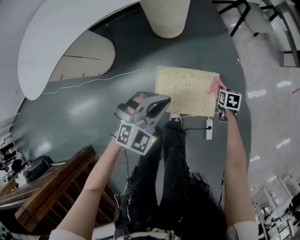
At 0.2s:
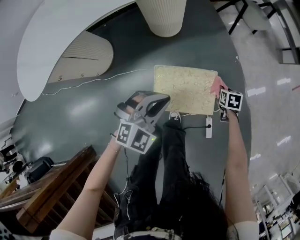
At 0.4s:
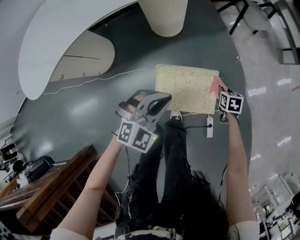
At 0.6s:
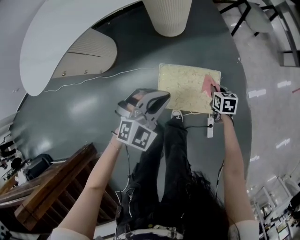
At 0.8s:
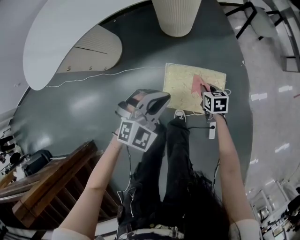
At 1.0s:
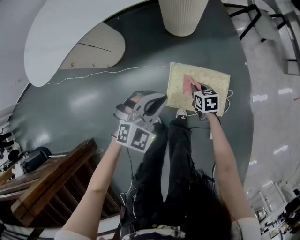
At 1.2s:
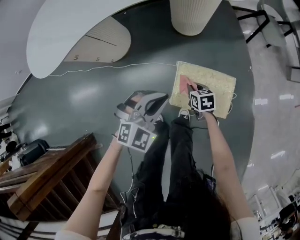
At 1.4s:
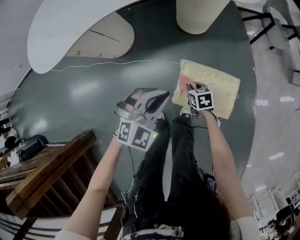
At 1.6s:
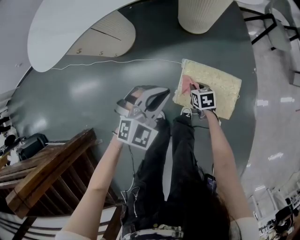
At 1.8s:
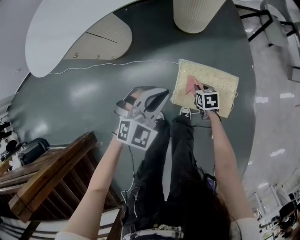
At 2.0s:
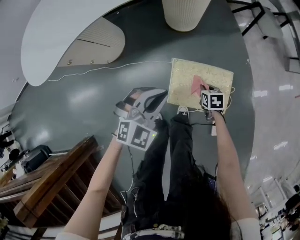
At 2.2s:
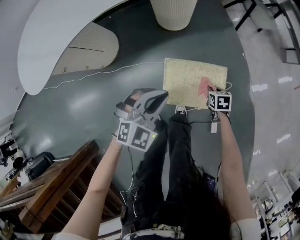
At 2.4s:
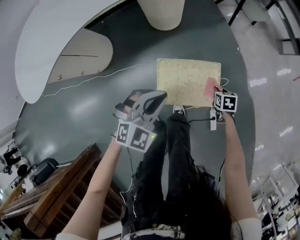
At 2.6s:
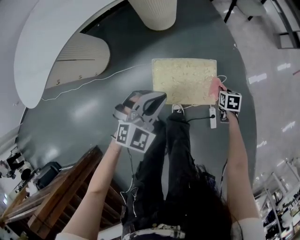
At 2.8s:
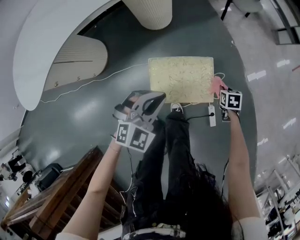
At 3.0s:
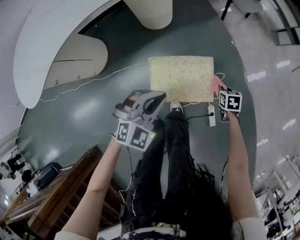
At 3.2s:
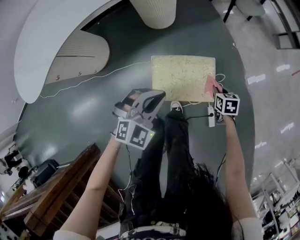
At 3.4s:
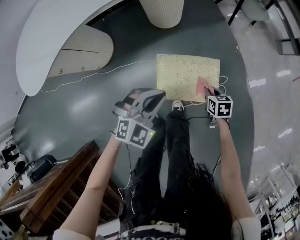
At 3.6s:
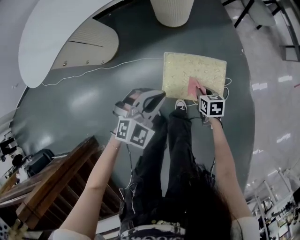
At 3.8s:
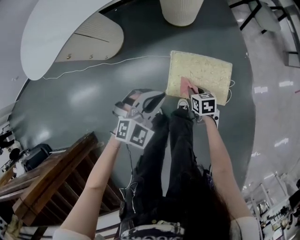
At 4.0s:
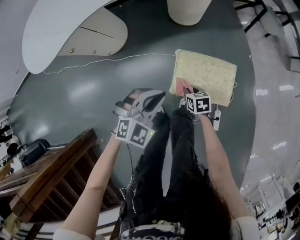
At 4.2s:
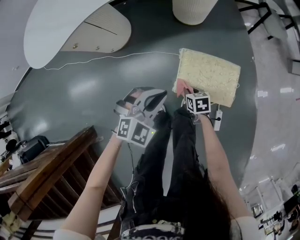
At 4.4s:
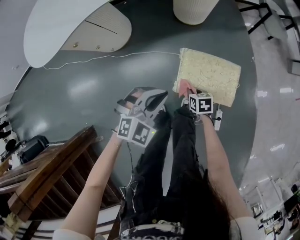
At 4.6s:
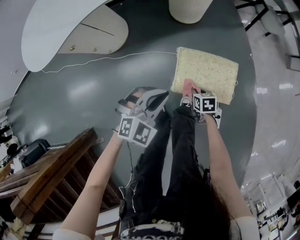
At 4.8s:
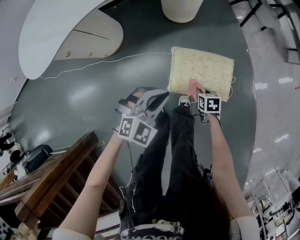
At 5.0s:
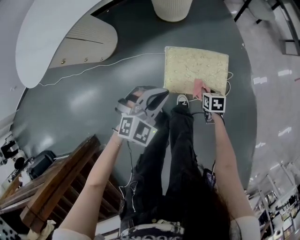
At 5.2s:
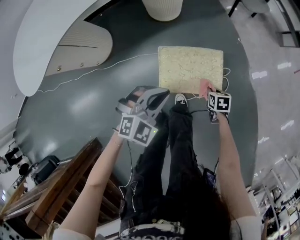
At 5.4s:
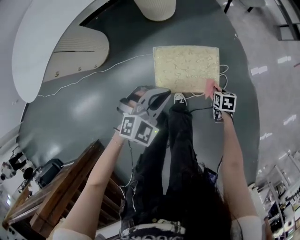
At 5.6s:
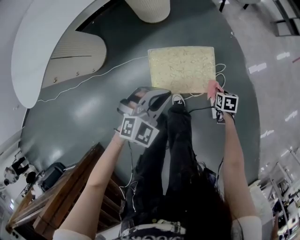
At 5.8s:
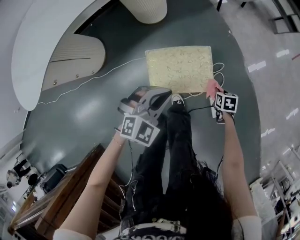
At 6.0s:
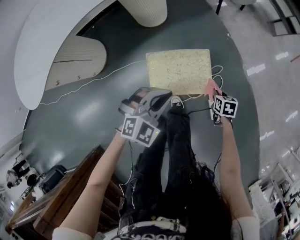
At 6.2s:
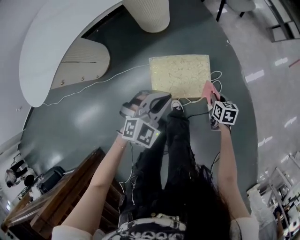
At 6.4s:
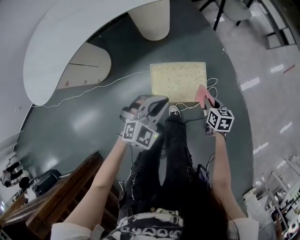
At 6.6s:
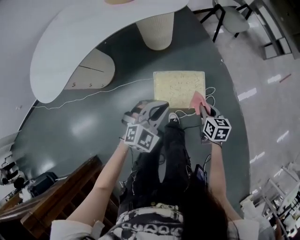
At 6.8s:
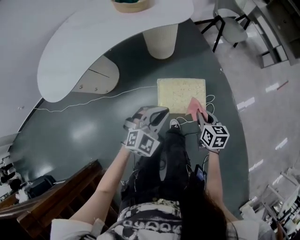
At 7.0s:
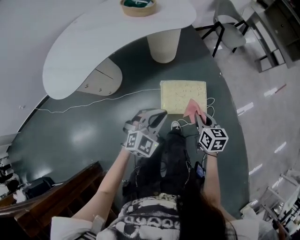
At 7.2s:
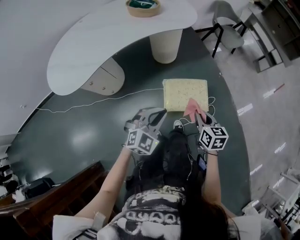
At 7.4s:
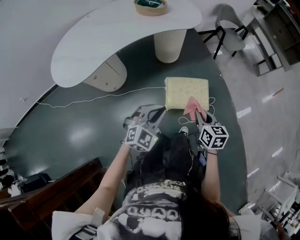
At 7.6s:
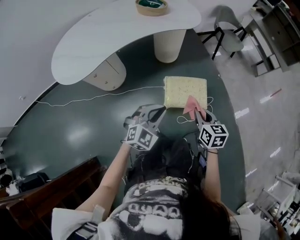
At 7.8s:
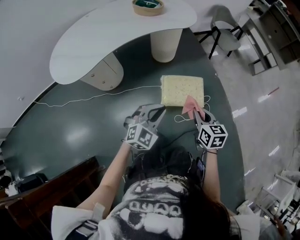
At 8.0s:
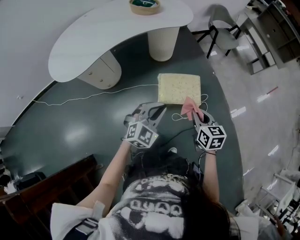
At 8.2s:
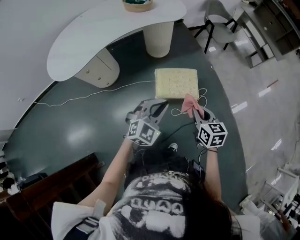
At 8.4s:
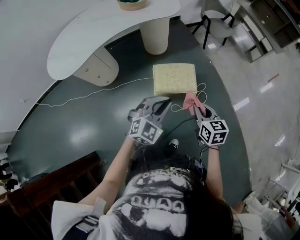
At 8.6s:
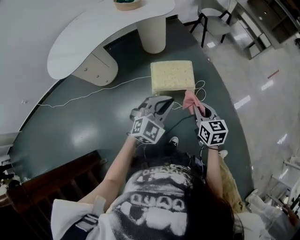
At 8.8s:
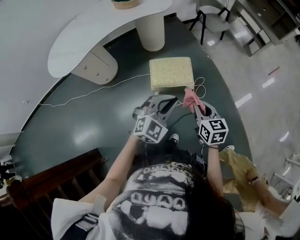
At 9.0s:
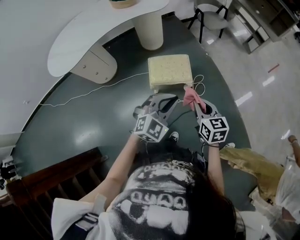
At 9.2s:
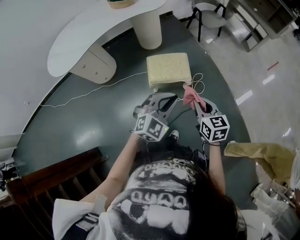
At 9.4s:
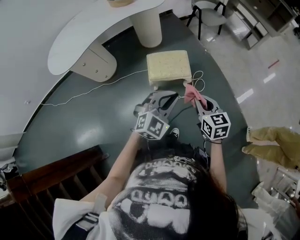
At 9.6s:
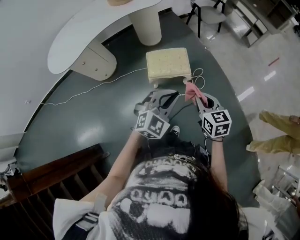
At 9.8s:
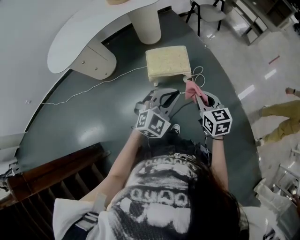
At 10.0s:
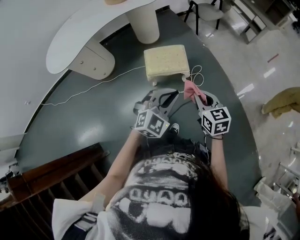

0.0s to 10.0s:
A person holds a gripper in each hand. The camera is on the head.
0.0s to 1.4s: The left gripper shifts by about 10 cm. Meanwhile the right gripper changes place by approximately 30 cm, and changes its angle by approximately 30 degrees.
1.4s to 2.8s: The left gripper changes place by roughly 15 cm. Meanwhile the right gripper moves some 35 cm, and rotates some 30 degrees.
2.8s to 4.2s: The left gripper moves roughly 15 cm. Meanwhile the right gripper ends up roughly 35 cm from where it was, and changes its angle by roughly 30 degrees.
4.2s to 5.8s: The right gripper moves some 35 cm, and changes its angle by some 30 degrees. The left gripper ends up roughly 15 cm from where it was.
5.8s to 7.2s: The right gripper goes about 40 cm upward and to the left, and tilts its fingers roughly 40 degrees upward; the left gripper goes approximately 25 cm upward, backward and to the left.
7.2s to 8.6s: The left gripper is displaced to the right, backward and upward by some 20 cm, while the right gripper goes some 20 cm backward, to the right and upward.
8.6s to 10.0s: Both grippers move to the right and backward, about 10 cm.

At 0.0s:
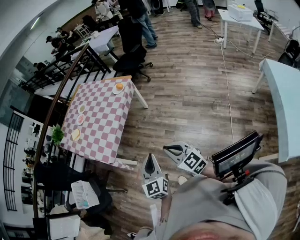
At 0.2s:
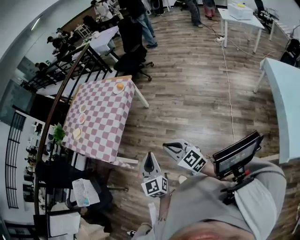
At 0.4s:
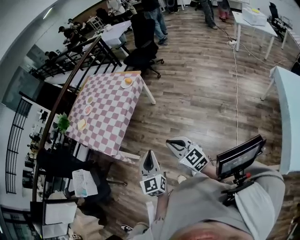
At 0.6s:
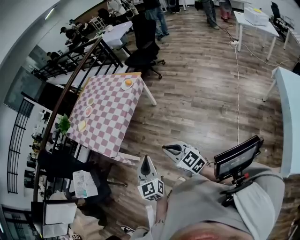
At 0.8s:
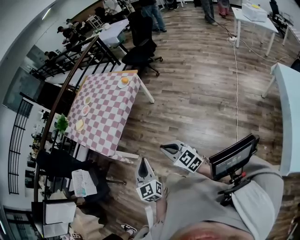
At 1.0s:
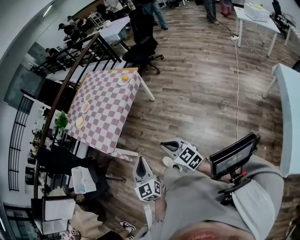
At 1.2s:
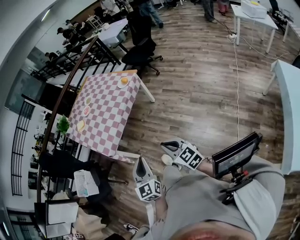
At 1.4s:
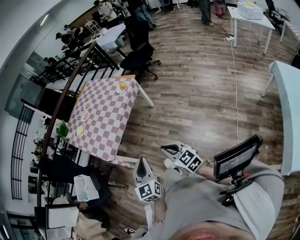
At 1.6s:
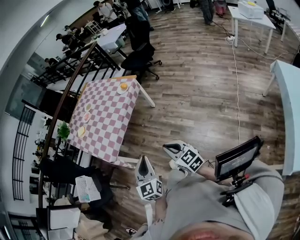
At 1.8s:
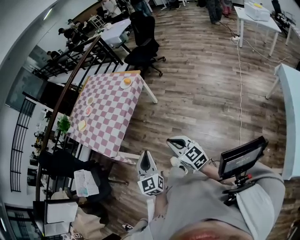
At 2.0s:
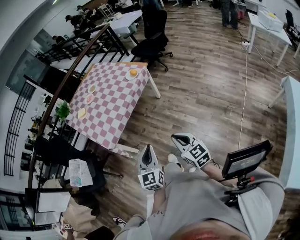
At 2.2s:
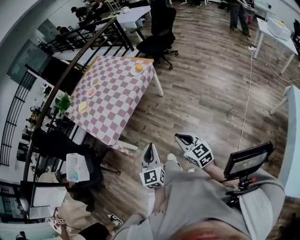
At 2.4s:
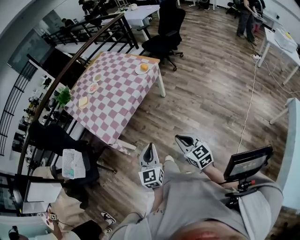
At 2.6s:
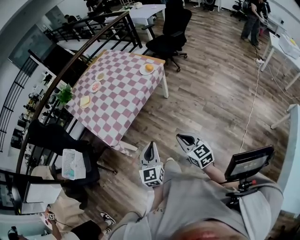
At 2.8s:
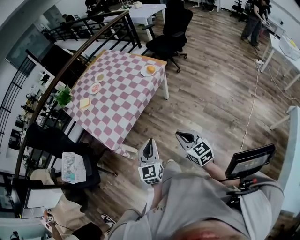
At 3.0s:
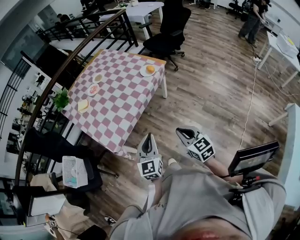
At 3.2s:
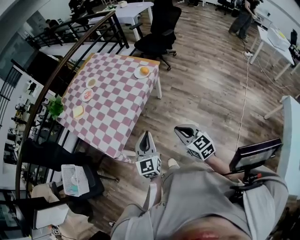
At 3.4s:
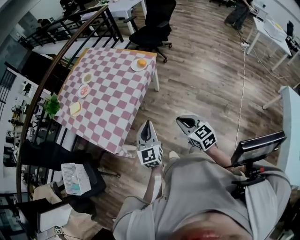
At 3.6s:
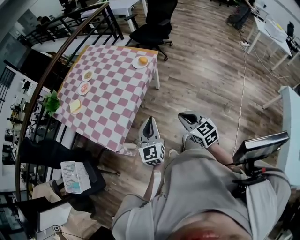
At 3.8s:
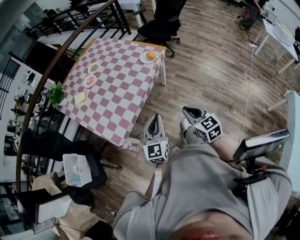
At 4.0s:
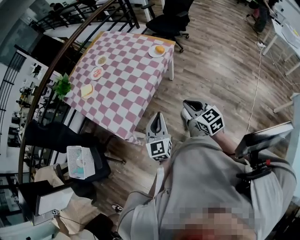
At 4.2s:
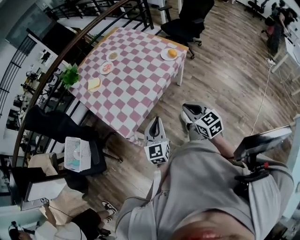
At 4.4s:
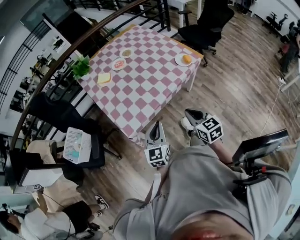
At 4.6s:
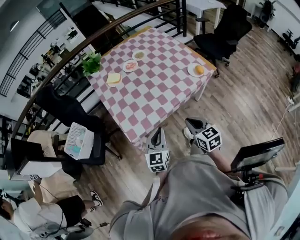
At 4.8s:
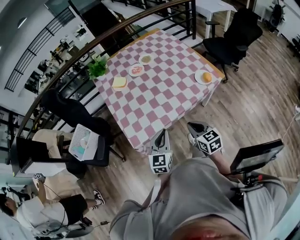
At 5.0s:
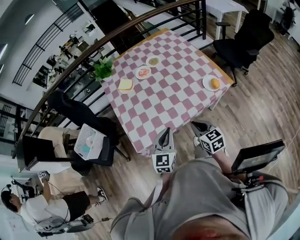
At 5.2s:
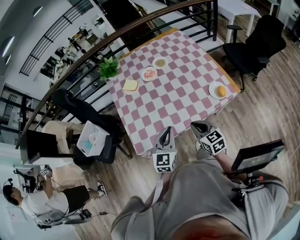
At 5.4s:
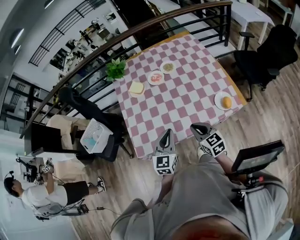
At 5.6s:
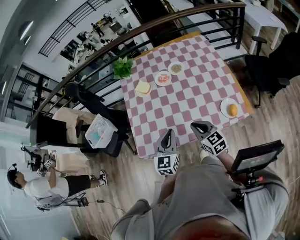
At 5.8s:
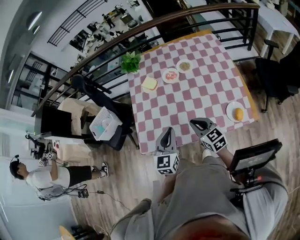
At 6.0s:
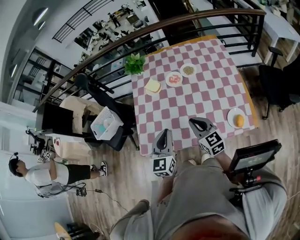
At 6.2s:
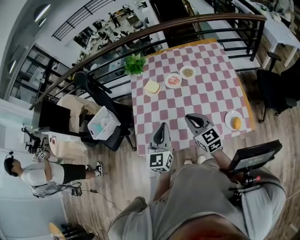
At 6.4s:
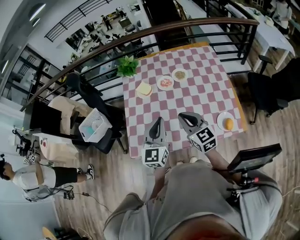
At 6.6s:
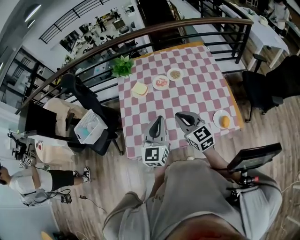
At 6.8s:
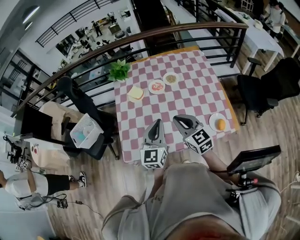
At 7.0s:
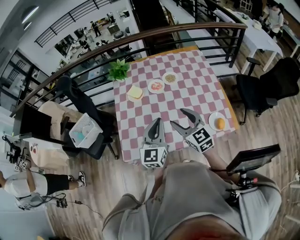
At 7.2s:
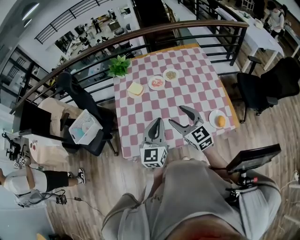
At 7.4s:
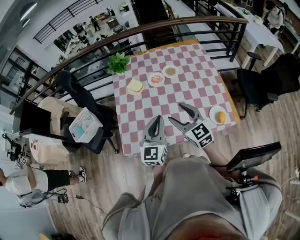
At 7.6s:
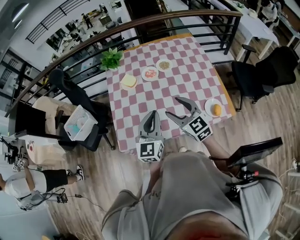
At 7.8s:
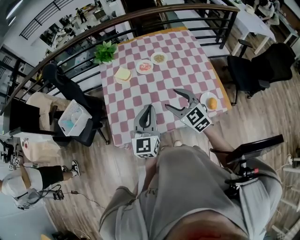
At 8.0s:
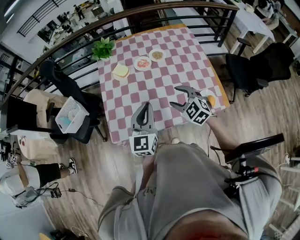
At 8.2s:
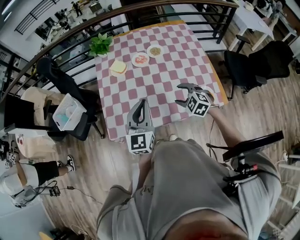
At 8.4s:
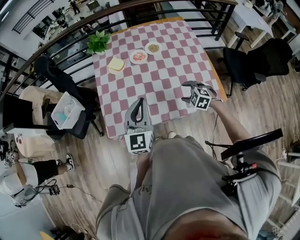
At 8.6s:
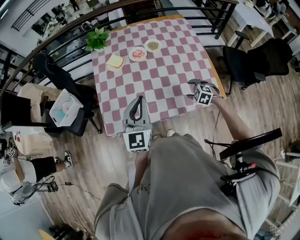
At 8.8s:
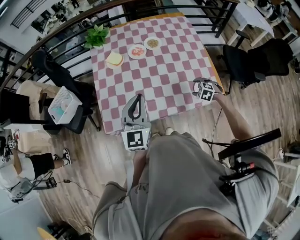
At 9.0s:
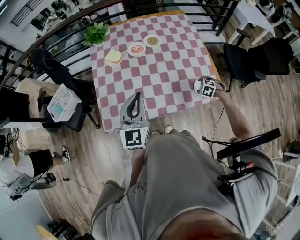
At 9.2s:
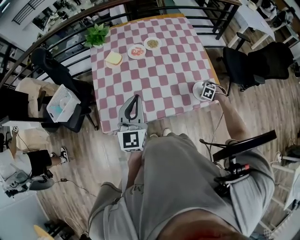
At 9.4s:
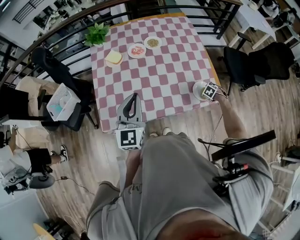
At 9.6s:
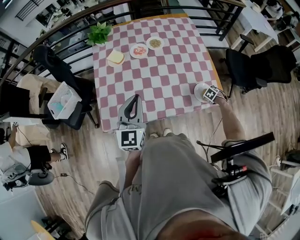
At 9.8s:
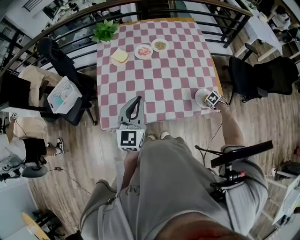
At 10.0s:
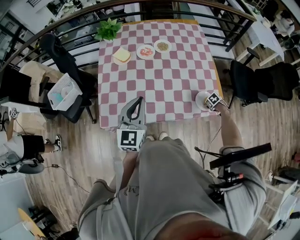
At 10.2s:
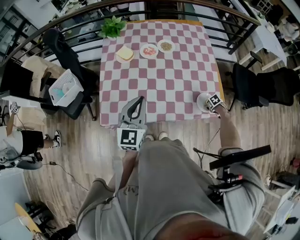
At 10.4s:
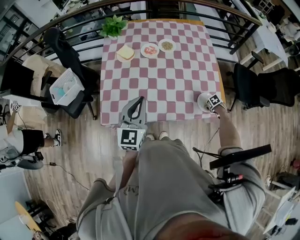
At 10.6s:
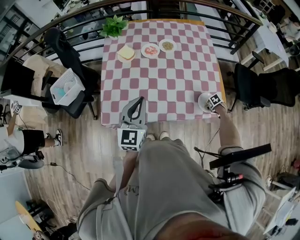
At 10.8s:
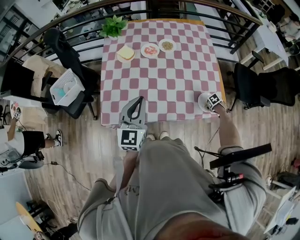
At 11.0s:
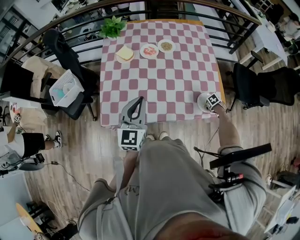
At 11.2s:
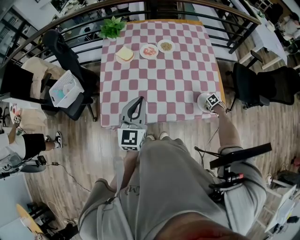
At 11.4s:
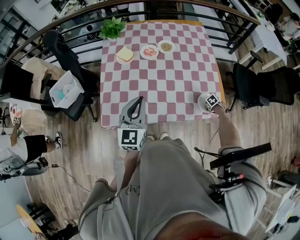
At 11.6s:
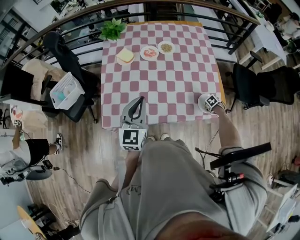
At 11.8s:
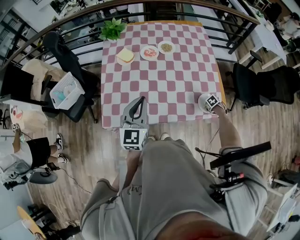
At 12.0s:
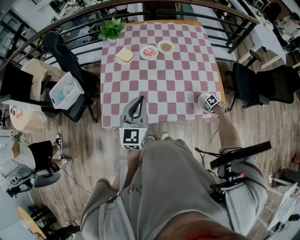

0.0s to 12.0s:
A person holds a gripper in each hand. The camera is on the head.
0.0s to 1.6s: The right gripper moves to the right, approximately 5 cm.
1.6s to 3.0s: Both grippers move forward, some 25 cm.
3.0s to 4.4s: The left gripper shifts some 15 cm to the left and forward. Meanwhile the right gripper goes approximately 20 cm forward and to the left.
4.4s to 6.0s: The left gripper moves approximately 30 cm, and rotates approximately 30 degrees, while the right gripper shifts by approximately 35 cm, and turns by about 40 degrees.
6.0s to 7.6s: The right gripper goes some 5 cm upward, and opens.
7.6s to 9.0s: The right gripper shifts approximately 30 cm downward, and tips its fingers downward by roughly 60 degrees.
9.0s to 10.4s: The right gripper changes place by approximately 15 cm, and changes its angle by about 40 degrees.
10.4s to 12.0s: There are only small adjustments of the grippers.

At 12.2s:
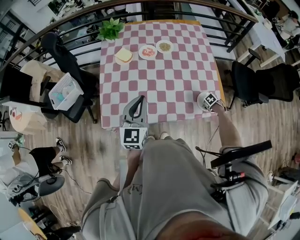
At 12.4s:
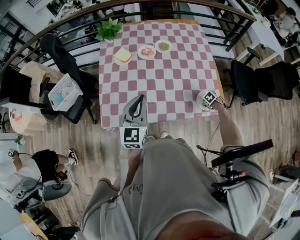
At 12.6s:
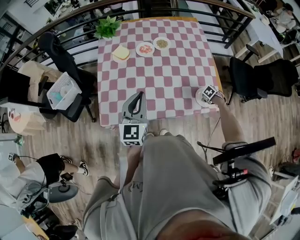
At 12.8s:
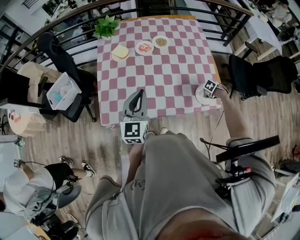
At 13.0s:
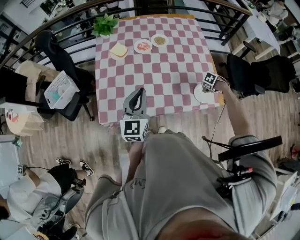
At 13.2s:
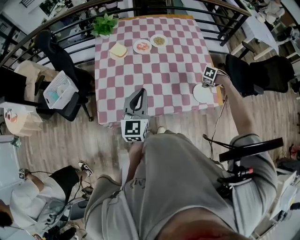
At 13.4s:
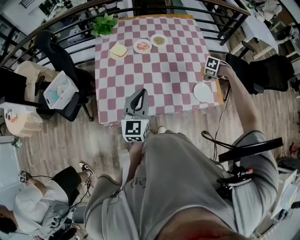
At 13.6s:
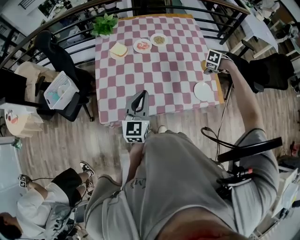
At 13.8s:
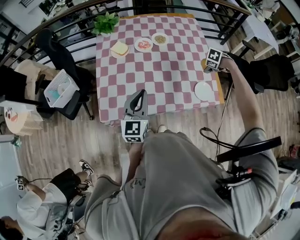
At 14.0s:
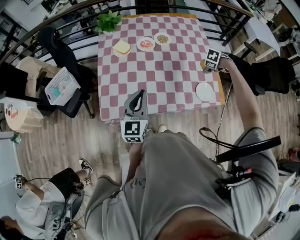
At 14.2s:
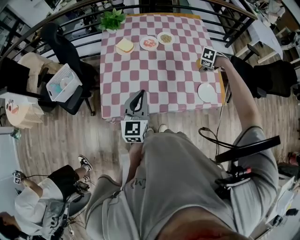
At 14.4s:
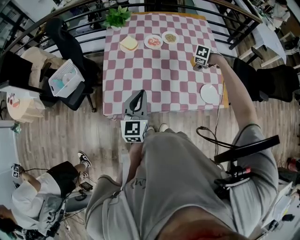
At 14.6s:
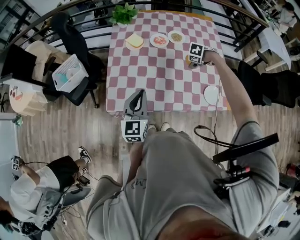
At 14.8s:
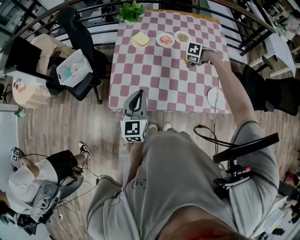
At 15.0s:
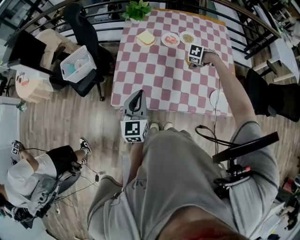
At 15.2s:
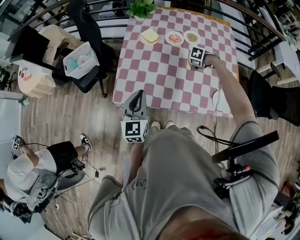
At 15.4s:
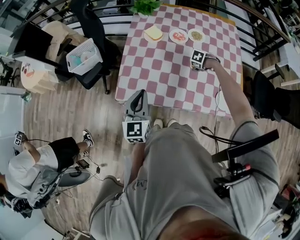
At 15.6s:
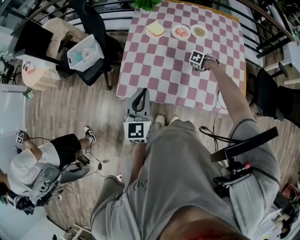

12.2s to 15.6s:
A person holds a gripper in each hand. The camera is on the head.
12.2s to 13.8s: The right gripper shifts some 25 cm upward, and swivels about 30 degrees.
13.8s to 15.6s: The right gripper shifts by approximately 30 cm. Meanwhile the left gripper shifts by roughly 10 cm, and turns by some 20 degrees.
